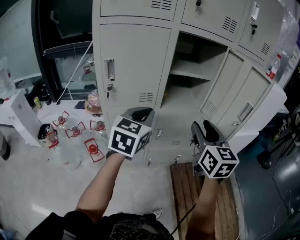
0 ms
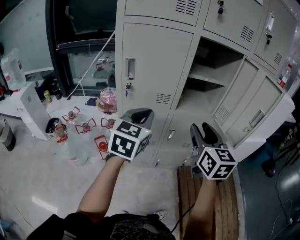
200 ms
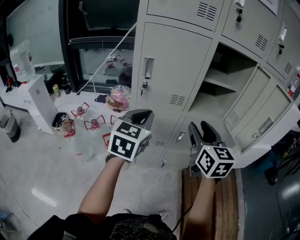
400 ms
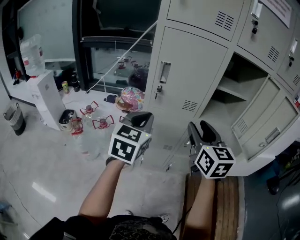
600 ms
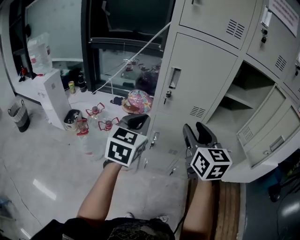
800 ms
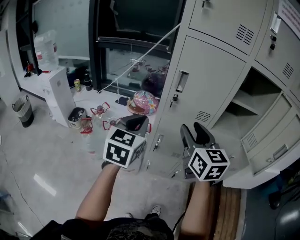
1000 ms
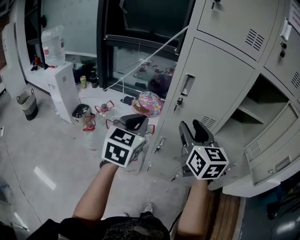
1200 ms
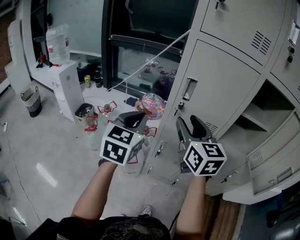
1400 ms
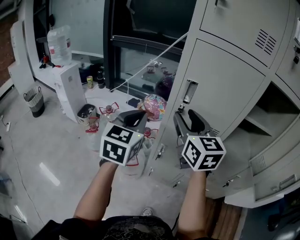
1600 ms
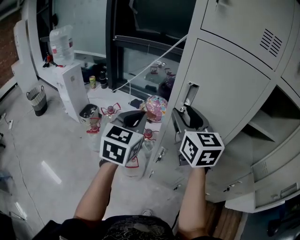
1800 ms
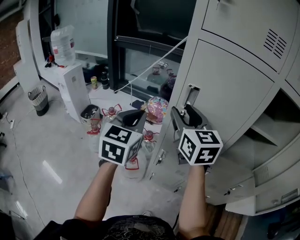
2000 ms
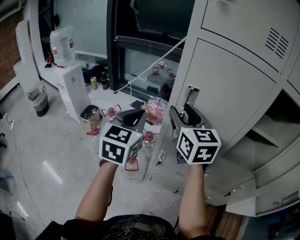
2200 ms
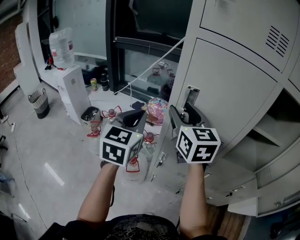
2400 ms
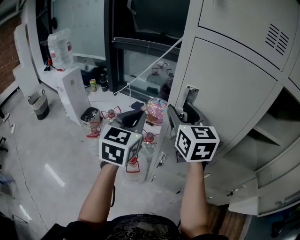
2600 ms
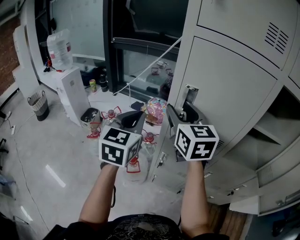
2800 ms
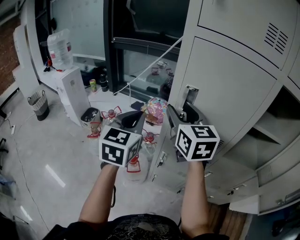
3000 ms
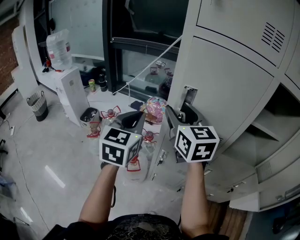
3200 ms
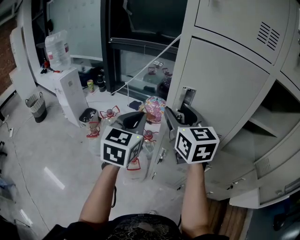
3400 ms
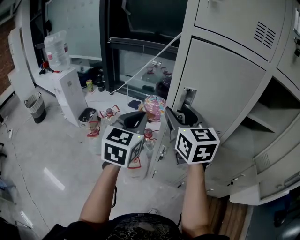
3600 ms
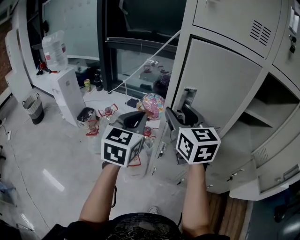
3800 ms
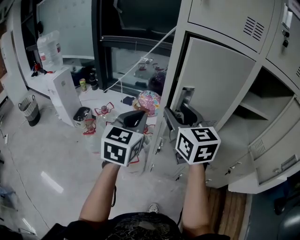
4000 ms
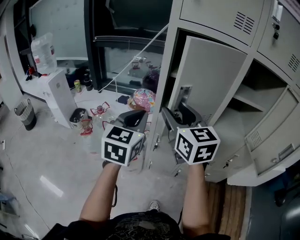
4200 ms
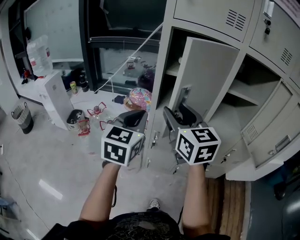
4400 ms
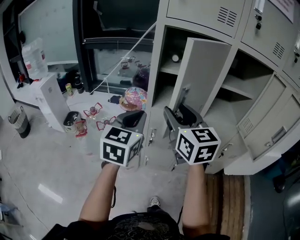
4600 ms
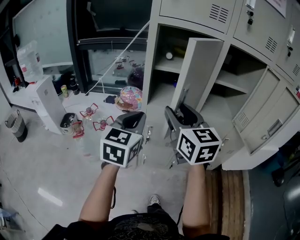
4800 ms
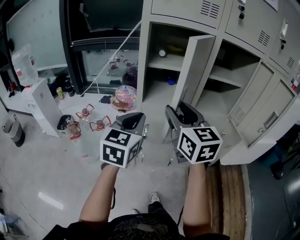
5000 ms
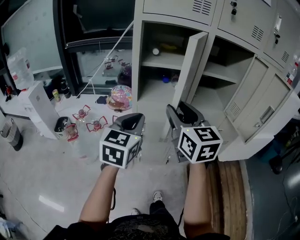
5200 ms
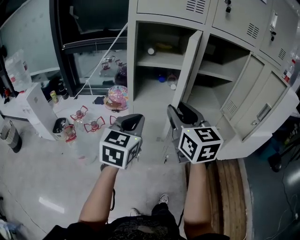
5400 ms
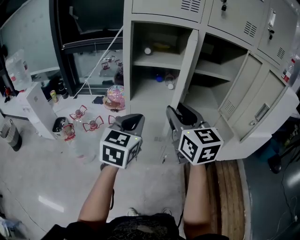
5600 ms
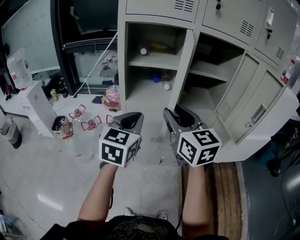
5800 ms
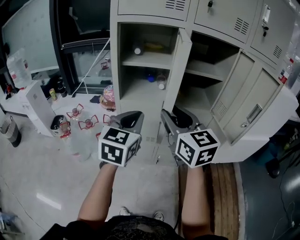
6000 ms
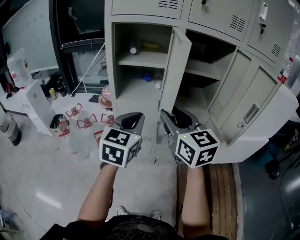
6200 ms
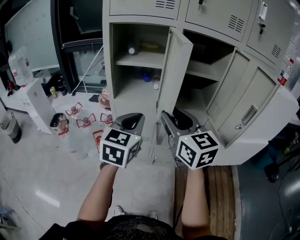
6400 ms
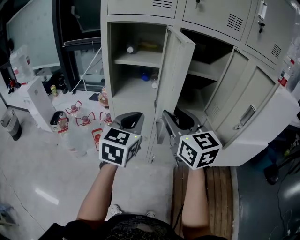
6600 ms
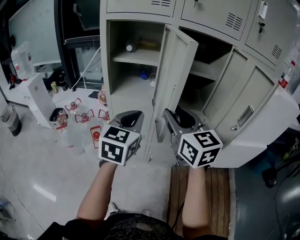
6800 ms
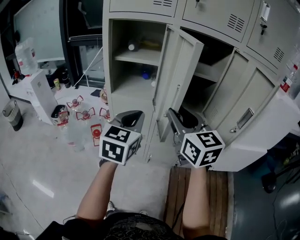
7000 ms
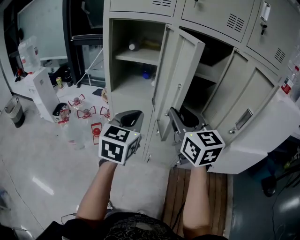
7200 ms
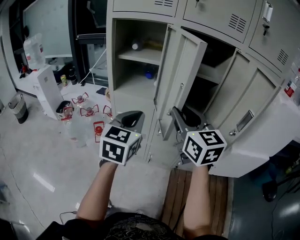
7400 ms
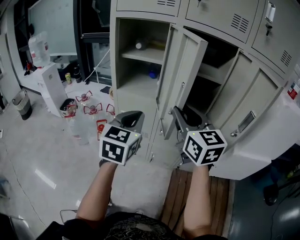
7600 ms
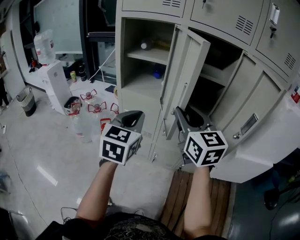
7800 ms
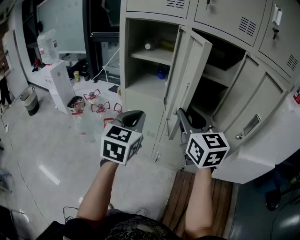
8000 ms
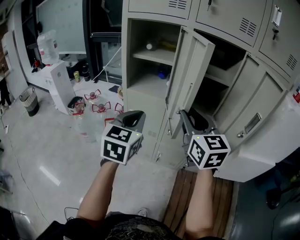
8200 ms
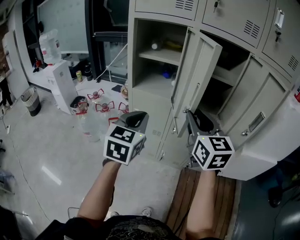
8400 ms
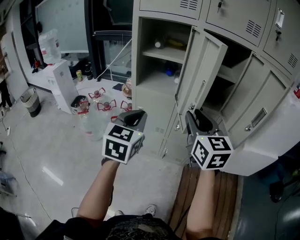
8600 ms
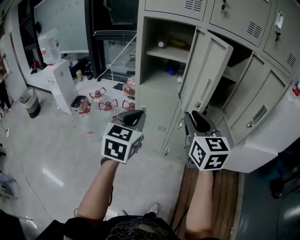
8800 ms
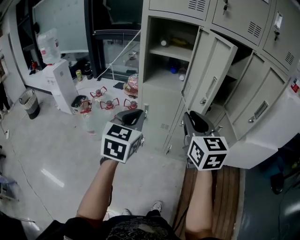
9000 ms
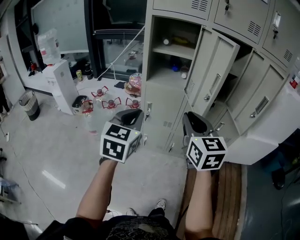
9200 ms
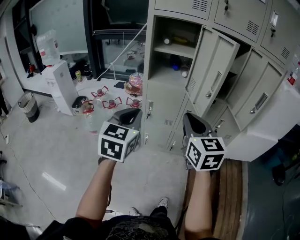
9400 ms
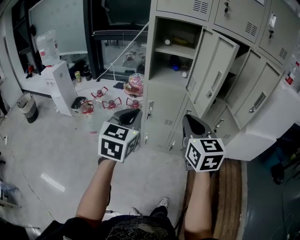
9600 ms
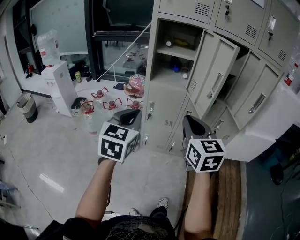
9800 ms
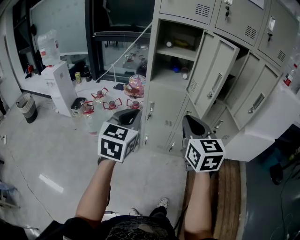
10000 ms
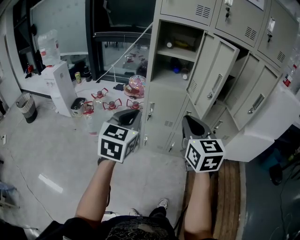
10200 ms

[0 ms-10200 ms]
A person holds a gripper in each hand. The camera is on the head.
0 ms to 1400 ms: The right gripper ends up about 35 cm from where it was, and rotates about 30 degrees. Meanwhile the left gripper moves roughly 30 cm, and turns by some 30 degrees.
1400 ms to 3000 ms: The grippers both shift forward by roughly 10 cm.
3000 ms to 4400 ms: Both grippers travel together backward, roughly 15 cm.
4400 ms to 5800 ms: The left gripper shifts roughly 10 cm to the right; the right gripper travels to the right and backward by approximately 15 cm.
5800 ms to 7200 ms: Both grippers travel together to the right, about 15 cm.
7200 ms to 8800 ms: The two grippers go some 10 cm to the left and backward.
8800 ms to 10200 ms: The grippers both shift to the left and backward by about 15 cm.

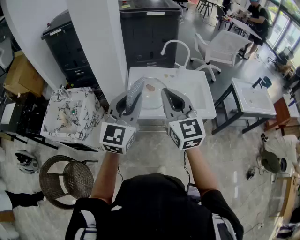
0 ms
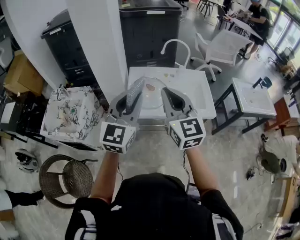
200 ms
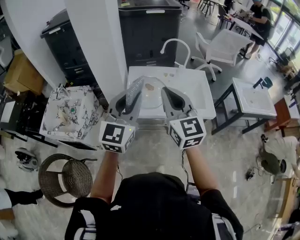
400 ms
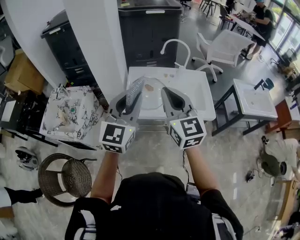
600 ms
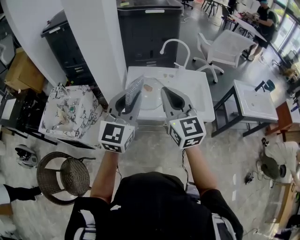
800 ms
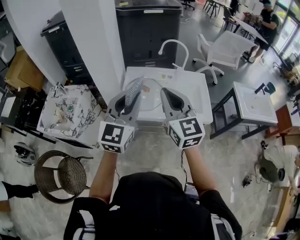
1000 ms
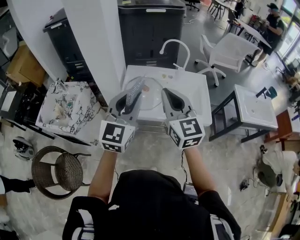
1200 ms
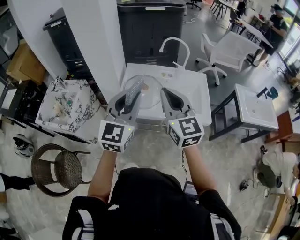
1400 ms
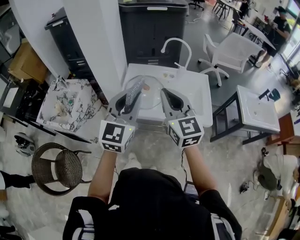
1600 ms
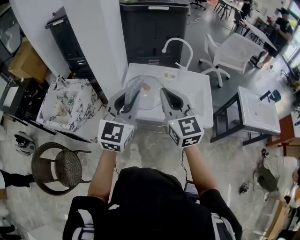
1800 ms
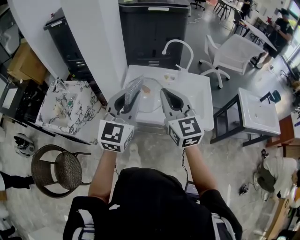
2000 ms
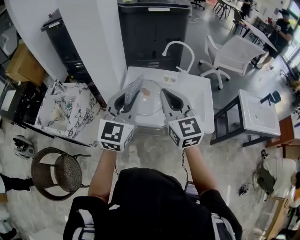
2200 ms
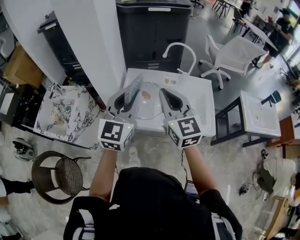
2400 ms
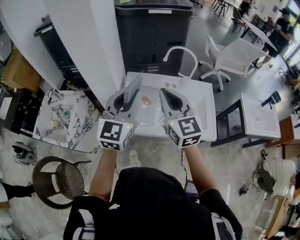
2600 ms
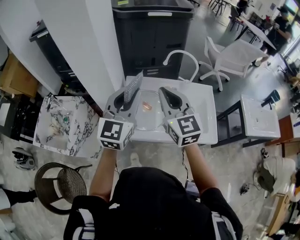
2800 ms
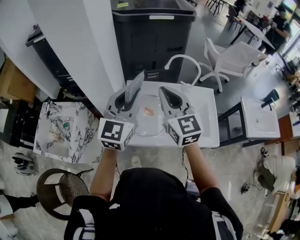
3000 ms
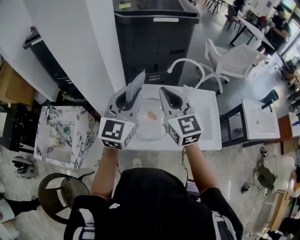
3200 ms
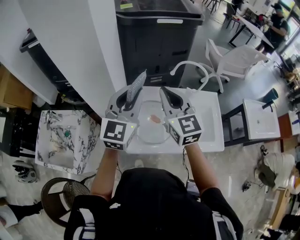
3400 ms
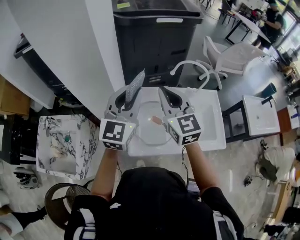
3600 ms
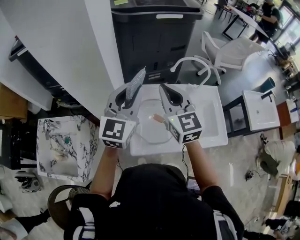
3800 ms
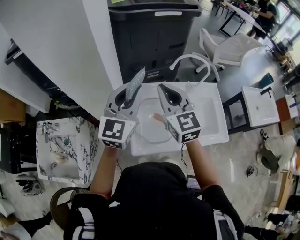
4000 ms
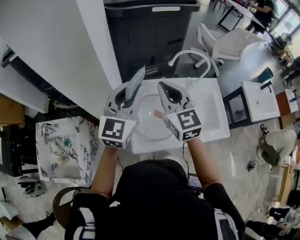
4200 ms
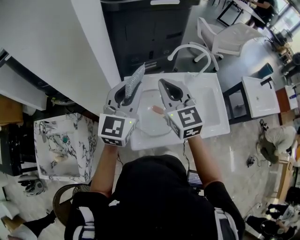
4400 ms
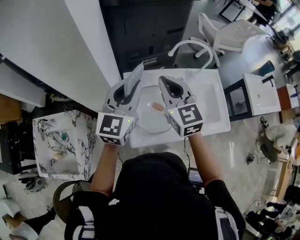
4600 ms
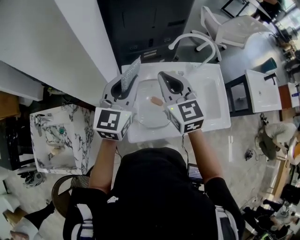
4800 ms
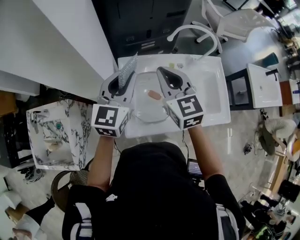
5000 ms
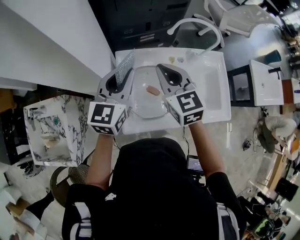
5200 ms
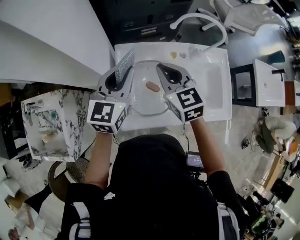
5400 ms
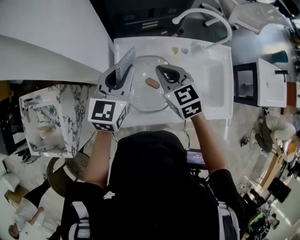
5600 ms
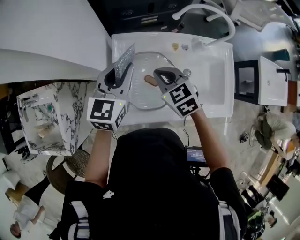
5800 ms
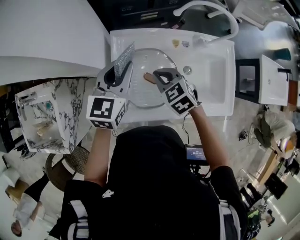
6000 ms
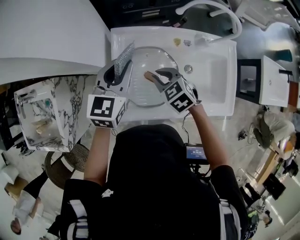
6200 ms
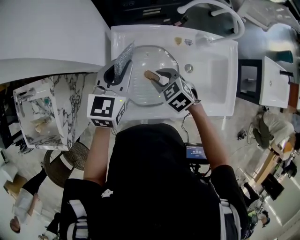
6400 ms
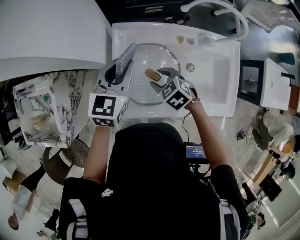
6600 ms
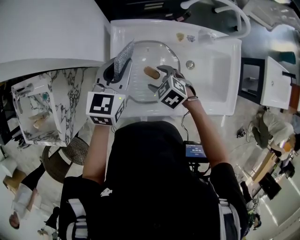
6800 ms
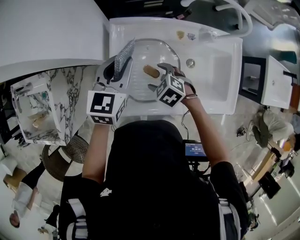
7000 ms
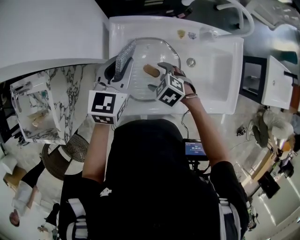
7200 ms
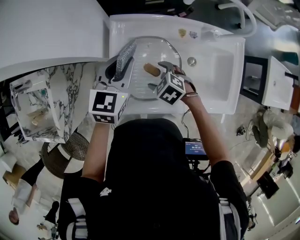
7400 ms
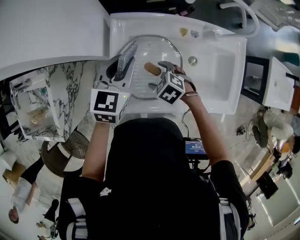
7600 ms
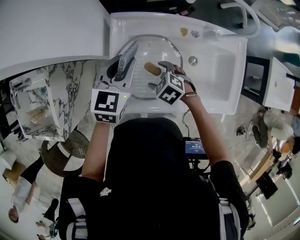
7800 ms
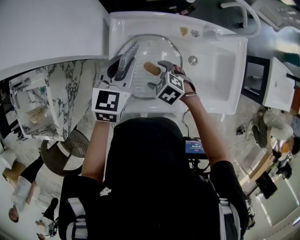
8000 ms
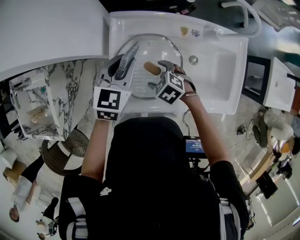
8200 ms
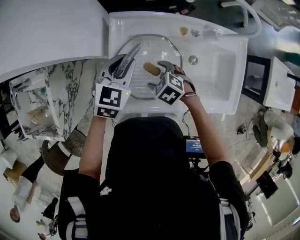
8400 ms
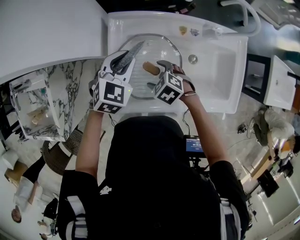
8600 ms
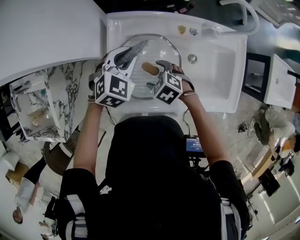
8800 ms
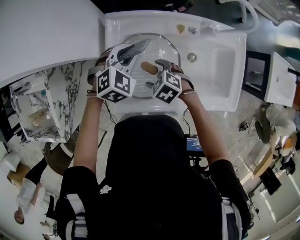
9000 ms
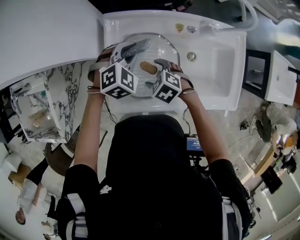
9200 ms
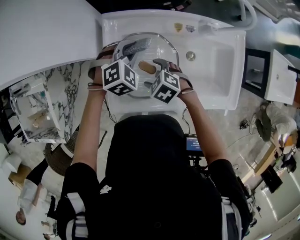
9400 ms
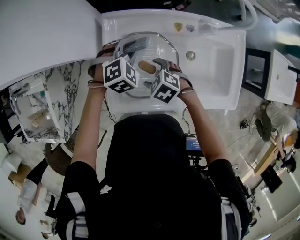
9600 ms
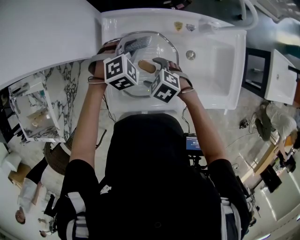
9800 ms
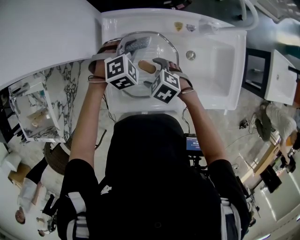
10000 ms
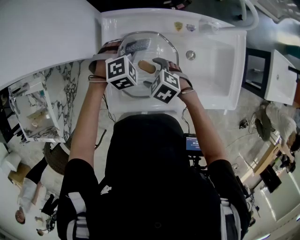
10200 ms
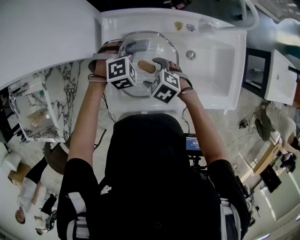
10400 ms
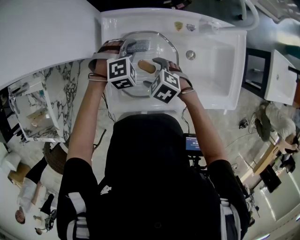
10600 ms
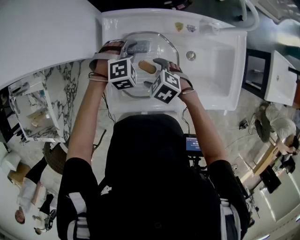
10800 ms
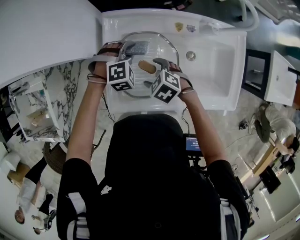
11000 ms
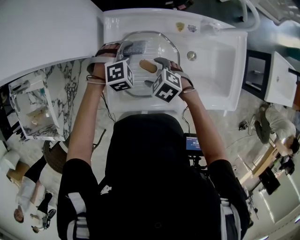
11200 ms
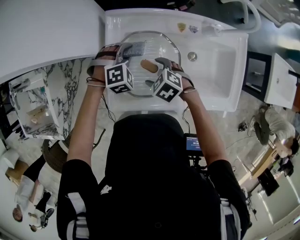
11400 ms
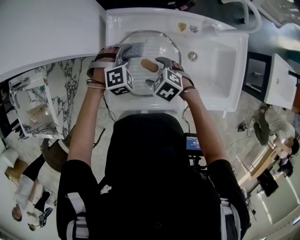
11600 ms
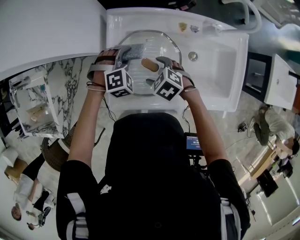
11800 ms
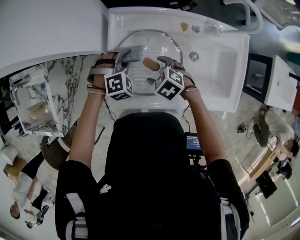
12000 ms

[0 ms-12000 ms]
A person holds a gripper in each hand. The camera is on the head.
0 ms to 1600 ms: The left gripper moves to the right, approximately 10 cm. Meanwhile the right gripper heads to the right and forward, covering some 10 cm.
1600 ms to 3000 ms: Both grippers move forward, roughly 20 cm.
3000 ms to 4400 ms: Both grippers travel together forward, downward and to the left, approximately 15 cm.
4400 ms to 6000 ms: The left gripper heads downward, covering about 20 cm, and rotates approximately 20 degrees; the right gripper is displaced downward by roughly 25 cm, and tips its fingers downward by some 40 degrees.
6000 ms to 7600 ms: The left gripper travels downward by approximately 5 cm, while the right gripper moves downward, about 10 cm, changes its angle by some 30 degrees, and opens up.
7600 ms to 9000 ms: The left gripper goes roughly 5 cm downward, and turns by approximately 40 degrees.
9000 ms to 10400 ms: The left gripper is displaced downward by about 5 cm, and rotates about 20 degrees.
10400 ms to 12000 ms: The left gripper goes approximately 5 cm to the left.

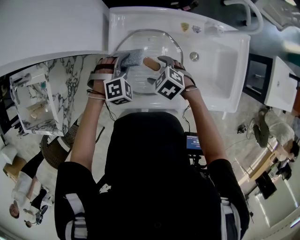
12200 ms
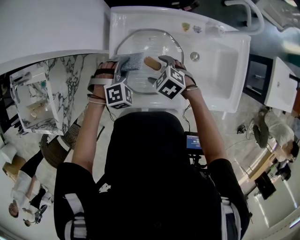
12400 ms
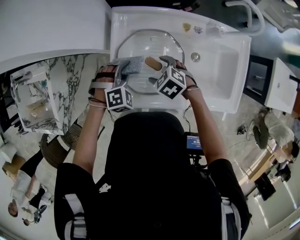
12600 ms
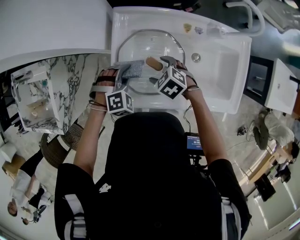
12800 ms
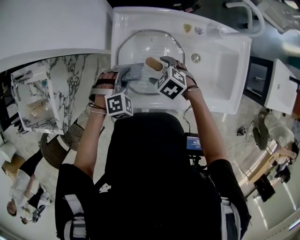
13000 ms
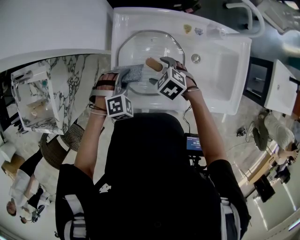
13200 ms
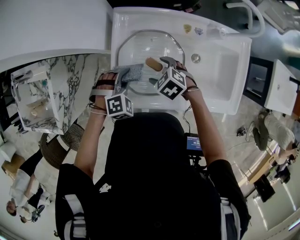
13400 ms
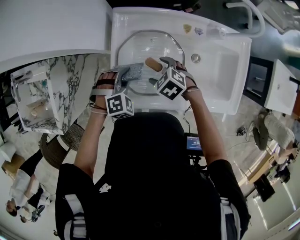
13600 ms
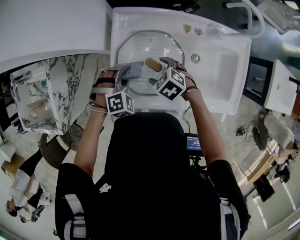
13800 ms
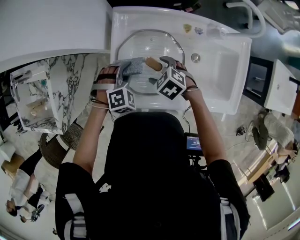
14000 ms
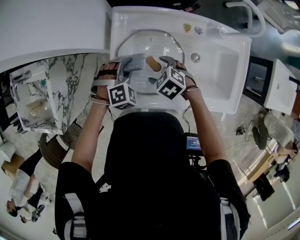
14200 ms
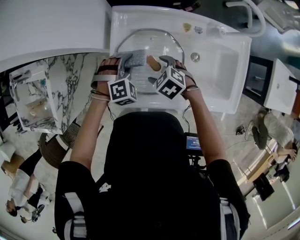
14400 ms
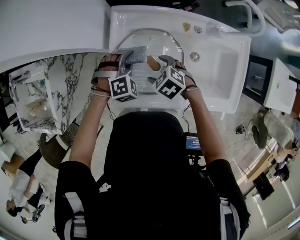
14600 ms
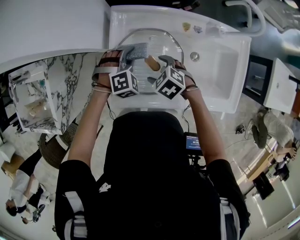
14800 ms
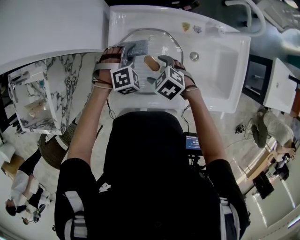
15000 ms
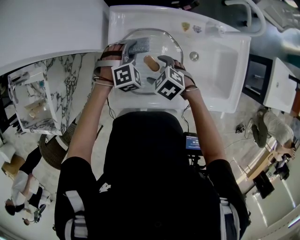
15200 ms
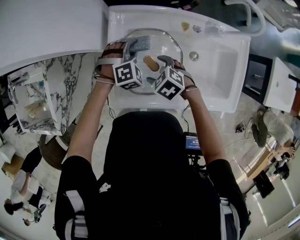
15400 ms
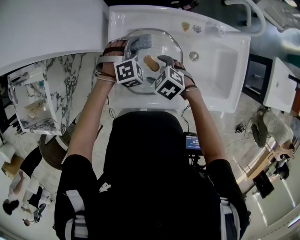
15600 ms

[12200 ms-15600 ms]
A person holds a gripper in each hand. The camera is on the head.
13800 ms to 15600 ms: The left gripper is displaced to the right and forward by approximately 10 cm.
